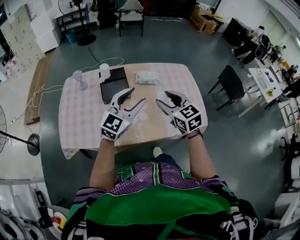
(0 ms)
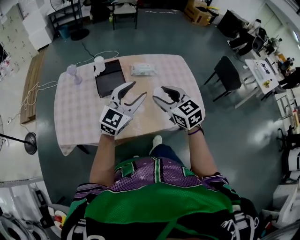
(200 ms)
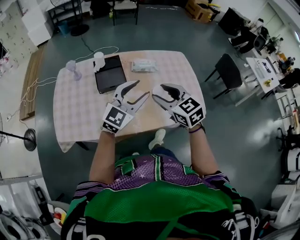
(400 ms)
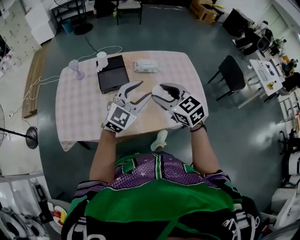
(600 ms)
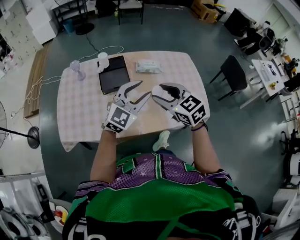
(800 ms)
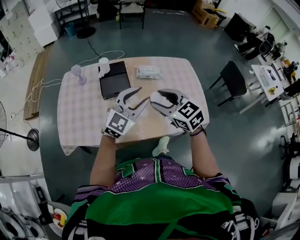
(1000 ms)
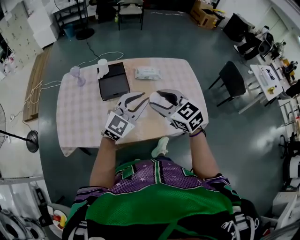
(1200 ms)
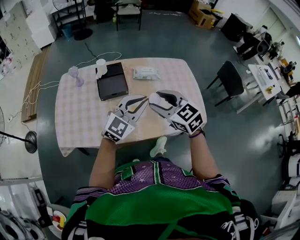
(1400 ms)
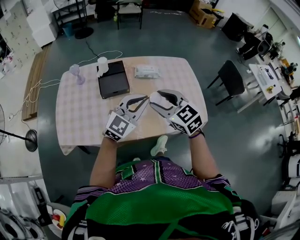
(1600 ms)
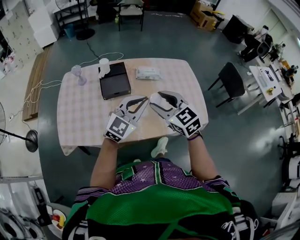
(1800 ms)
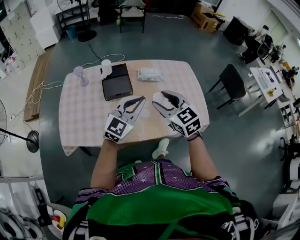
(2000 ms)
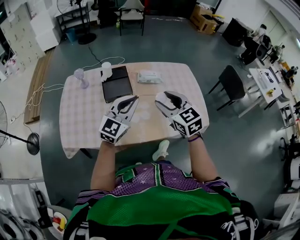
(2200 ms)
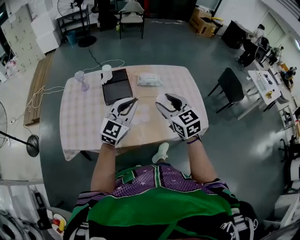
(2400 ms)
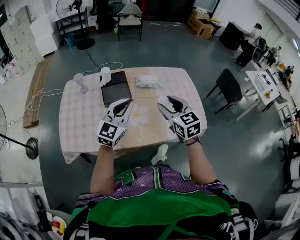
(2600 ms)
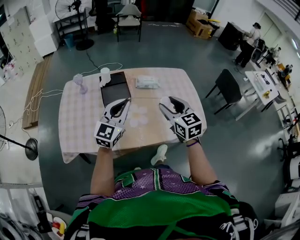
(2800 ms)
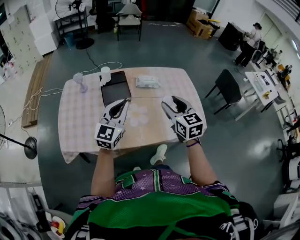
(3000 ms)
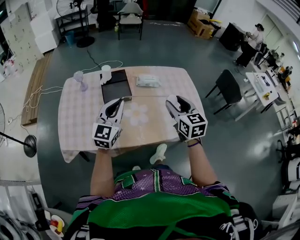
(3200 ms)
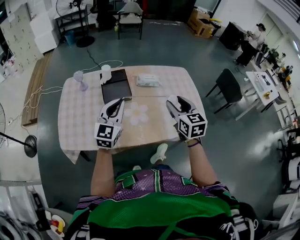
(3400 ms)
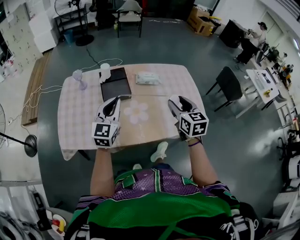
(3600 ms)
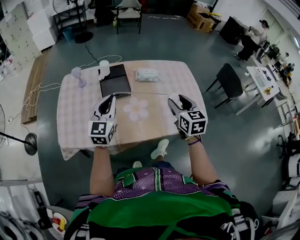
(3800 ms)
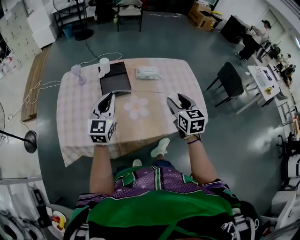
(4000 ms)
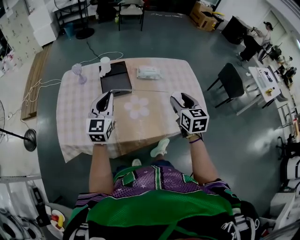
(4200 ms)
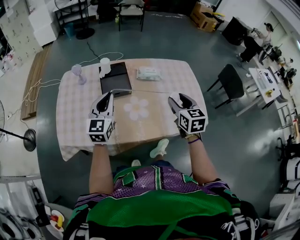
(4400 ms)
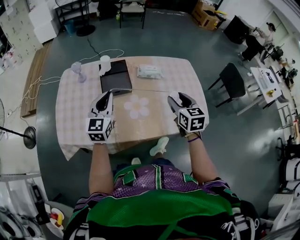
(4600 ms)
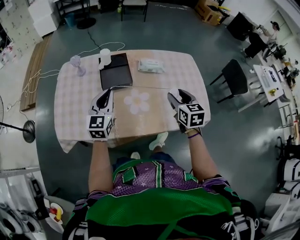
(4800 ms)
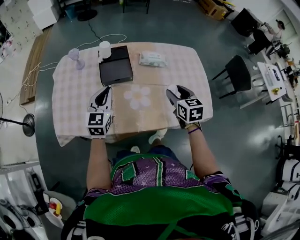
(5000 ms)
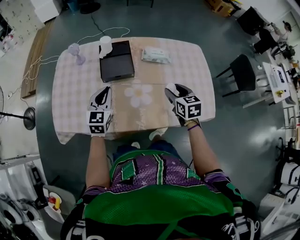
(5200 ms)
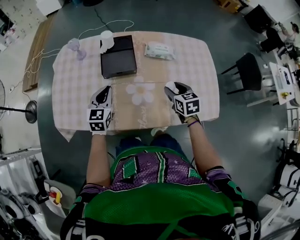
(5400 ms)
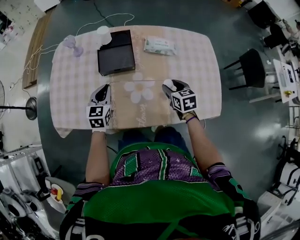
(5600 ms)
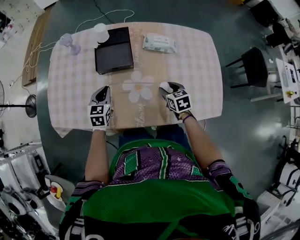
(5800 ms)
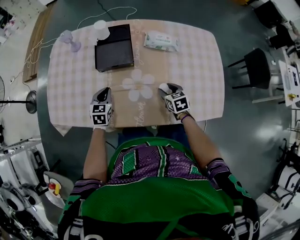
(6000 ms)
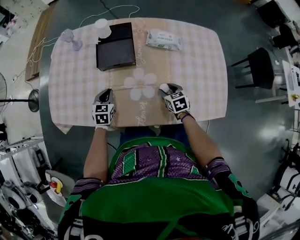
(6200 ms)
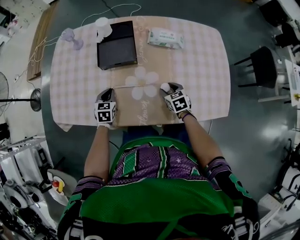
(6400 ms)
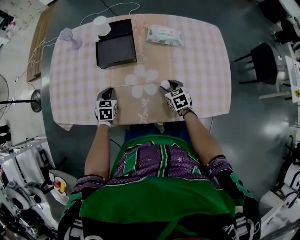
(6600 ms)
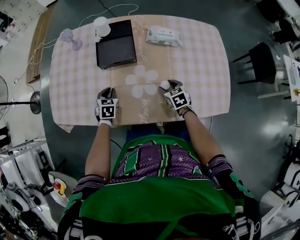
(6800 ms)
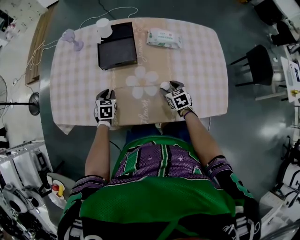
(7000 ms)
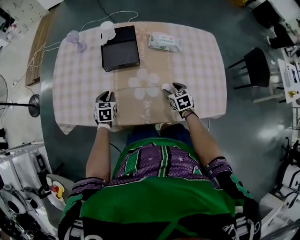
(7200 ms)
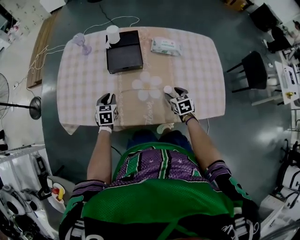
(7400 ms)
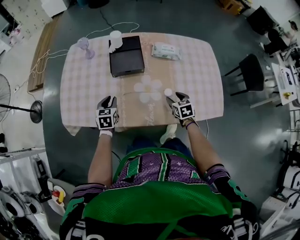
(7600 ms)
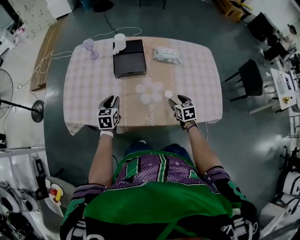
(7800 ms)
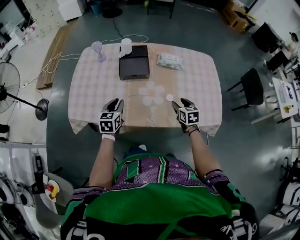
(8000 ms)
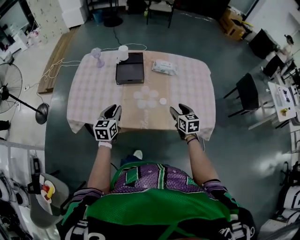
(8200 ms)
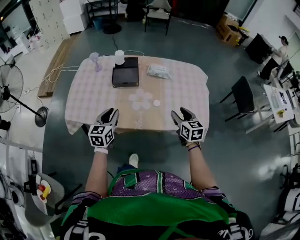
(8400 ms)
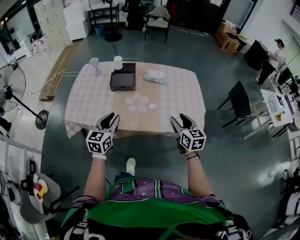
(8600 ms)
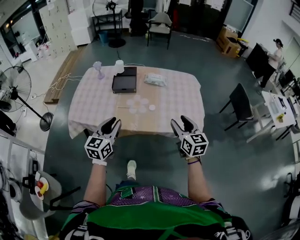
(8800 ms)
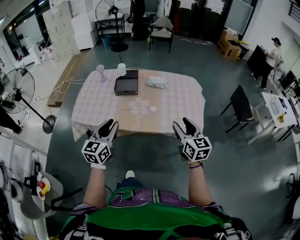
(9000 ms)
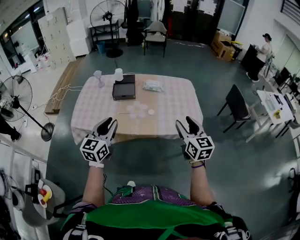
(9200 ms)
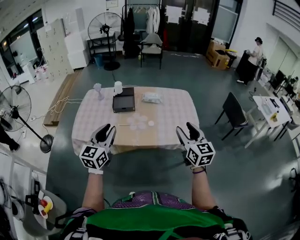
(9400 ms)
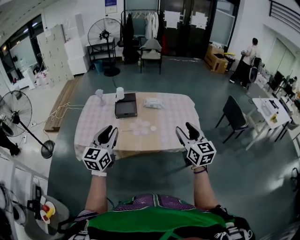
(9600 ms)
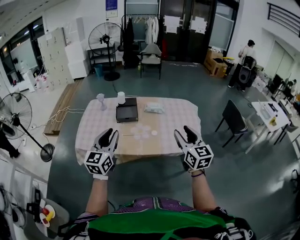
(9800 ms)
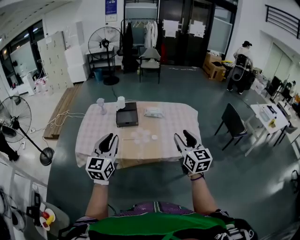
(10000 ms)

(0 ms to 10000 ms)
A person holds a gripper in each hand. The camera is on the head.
0 ms - 1400 ms: The left gripper closes up.
1400 ms - 2800 ms: The right gripper turns by about 20 degrees; the left gripper shifts approximately 10 cm to the left.
2800 ms - 4200 ms: The right gripper shifts approximately 5 cm to the right. Meanwhile the left gripper heads to the left, covering some 10 cm.
4200 ms - 5800 ms: The two grippers go about 25 cm downward. The right gripper turns by about 30 degrees, while the left gripper turns by about 30 degrees.
5800 ms - 7200 ms: The left gripper shifts approximately 5 cm downward.
7200 ms - 8600 ms: Both grippers move upward and backward, approximately 35 cm. The right gripper tips its fingers upward by roughly 30 degrees. The left gripper points its fingers about 30 degrees further upward.
8600 ms - 10000 ms: Both grippers move upward and backward, about 20 cm.

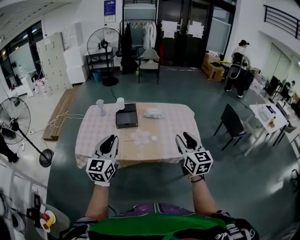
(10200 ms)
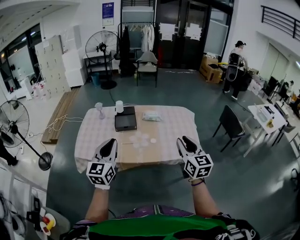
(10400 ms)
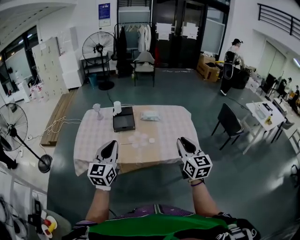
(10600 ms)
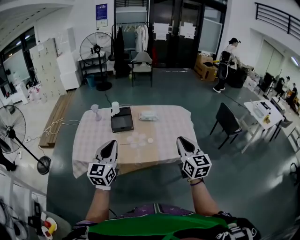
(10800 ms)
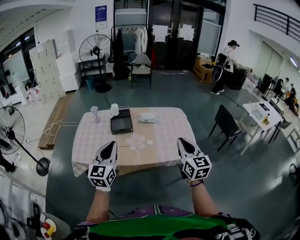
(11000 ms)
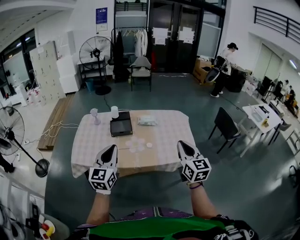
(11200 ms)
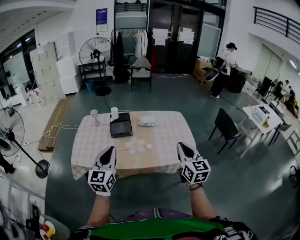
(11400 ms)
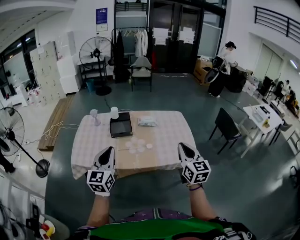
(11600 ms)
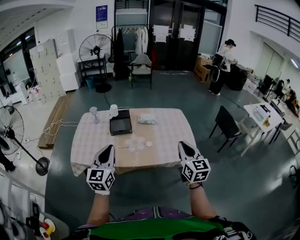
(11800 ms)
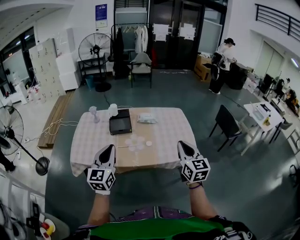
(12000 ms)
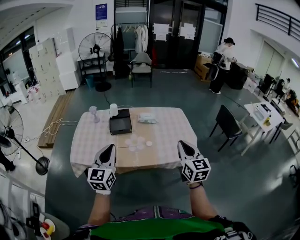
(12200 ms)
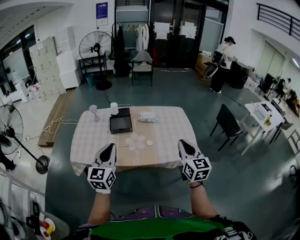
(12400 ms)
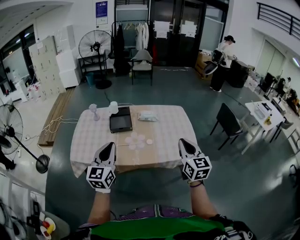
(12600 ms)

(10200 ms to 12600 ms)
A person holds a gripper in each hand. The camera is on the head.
10200 ms - 11400 ms: The right gripper closes its fingers.
11400 ms - 12600 ms: The grippers move only a little.

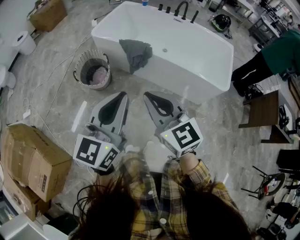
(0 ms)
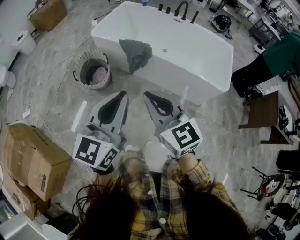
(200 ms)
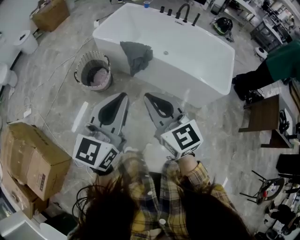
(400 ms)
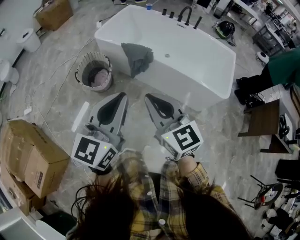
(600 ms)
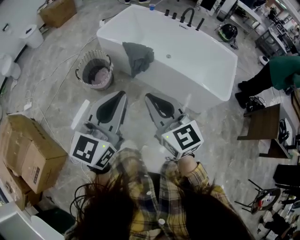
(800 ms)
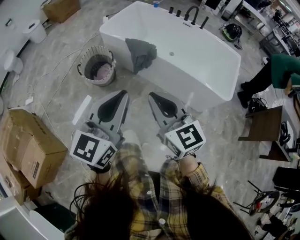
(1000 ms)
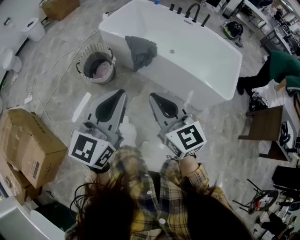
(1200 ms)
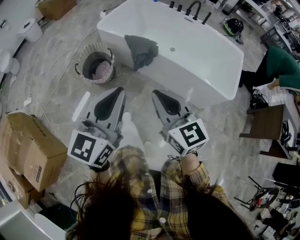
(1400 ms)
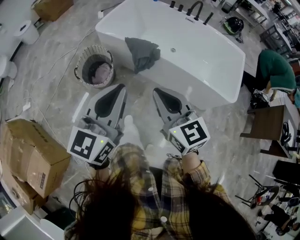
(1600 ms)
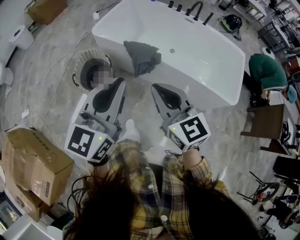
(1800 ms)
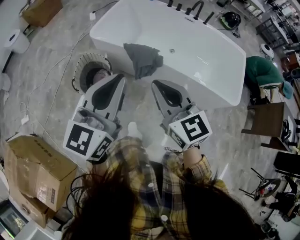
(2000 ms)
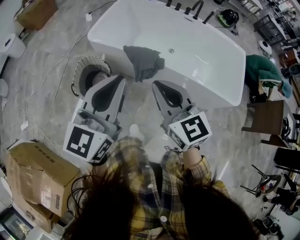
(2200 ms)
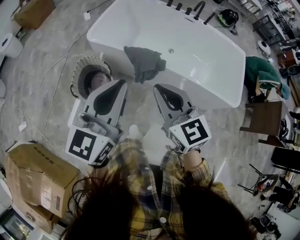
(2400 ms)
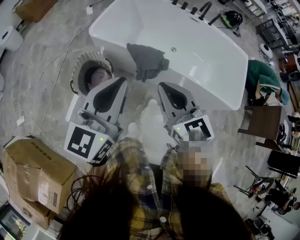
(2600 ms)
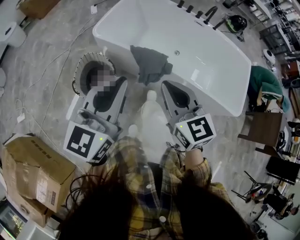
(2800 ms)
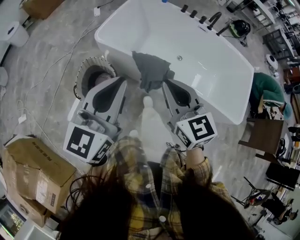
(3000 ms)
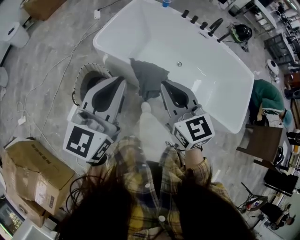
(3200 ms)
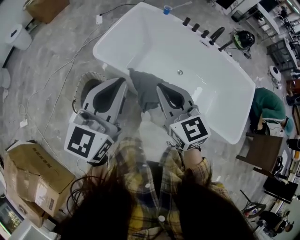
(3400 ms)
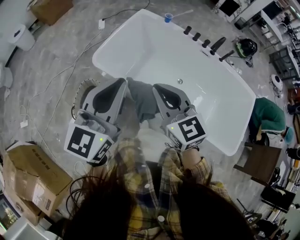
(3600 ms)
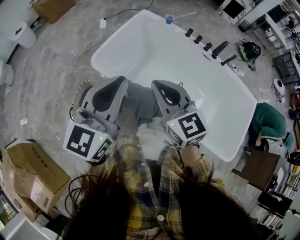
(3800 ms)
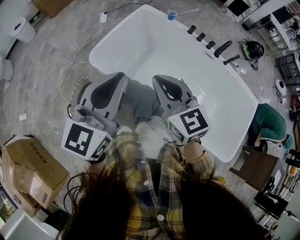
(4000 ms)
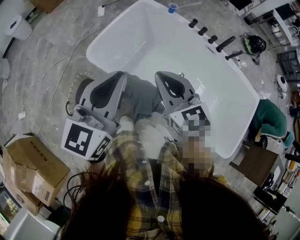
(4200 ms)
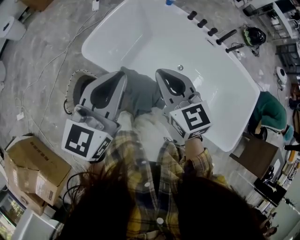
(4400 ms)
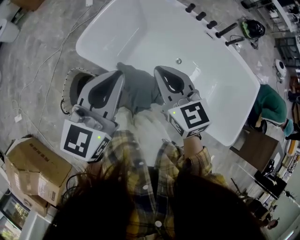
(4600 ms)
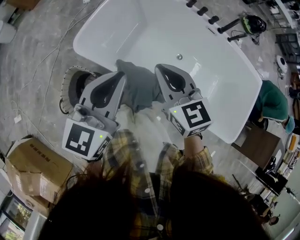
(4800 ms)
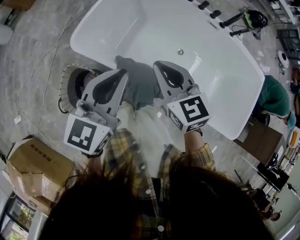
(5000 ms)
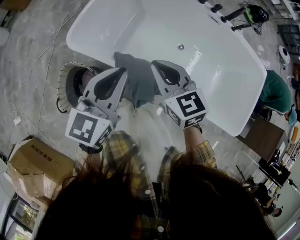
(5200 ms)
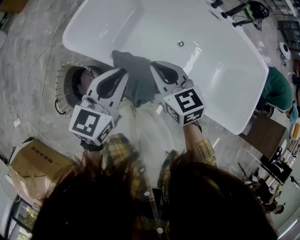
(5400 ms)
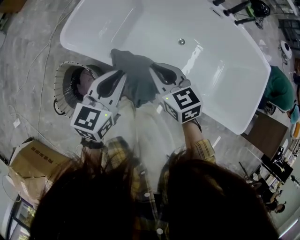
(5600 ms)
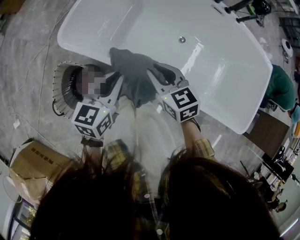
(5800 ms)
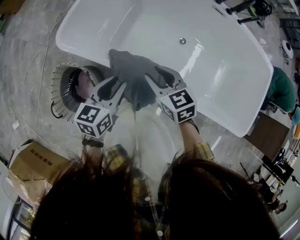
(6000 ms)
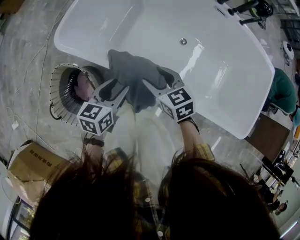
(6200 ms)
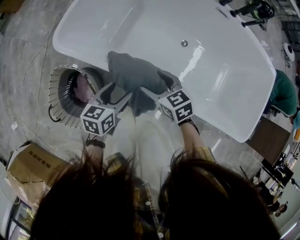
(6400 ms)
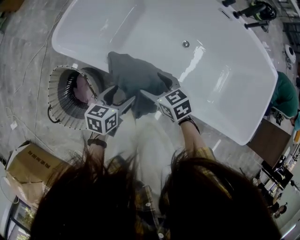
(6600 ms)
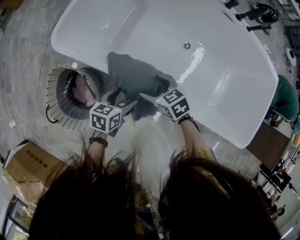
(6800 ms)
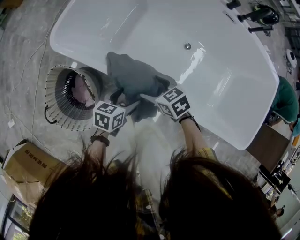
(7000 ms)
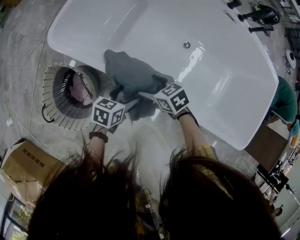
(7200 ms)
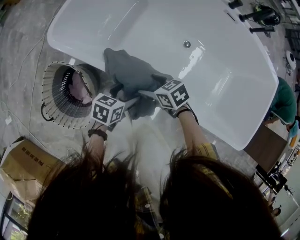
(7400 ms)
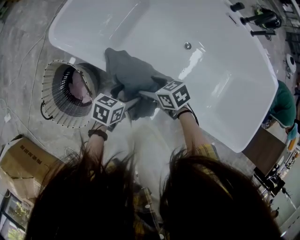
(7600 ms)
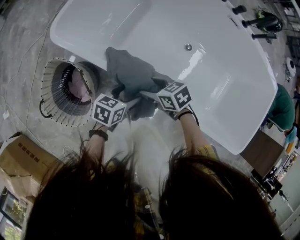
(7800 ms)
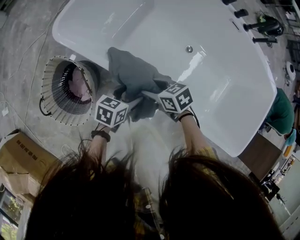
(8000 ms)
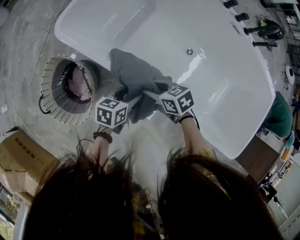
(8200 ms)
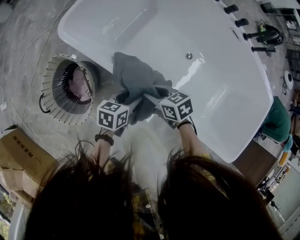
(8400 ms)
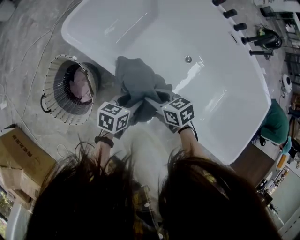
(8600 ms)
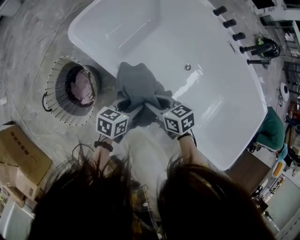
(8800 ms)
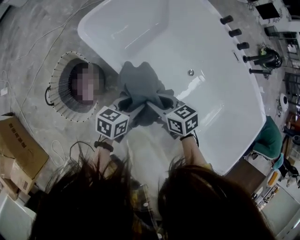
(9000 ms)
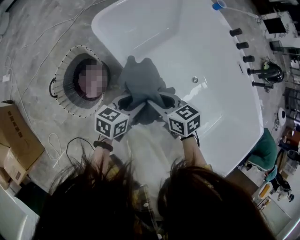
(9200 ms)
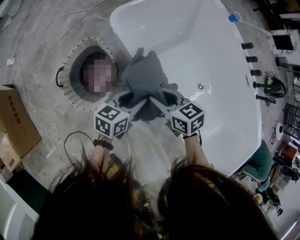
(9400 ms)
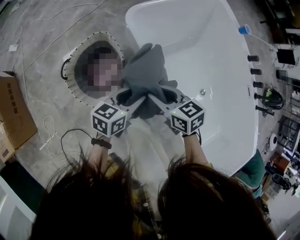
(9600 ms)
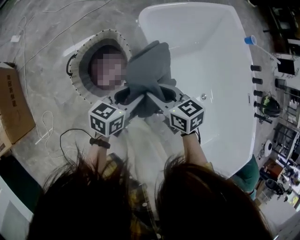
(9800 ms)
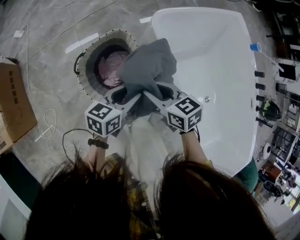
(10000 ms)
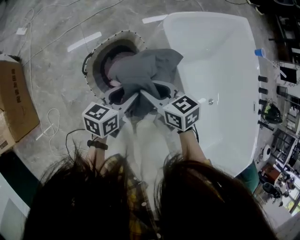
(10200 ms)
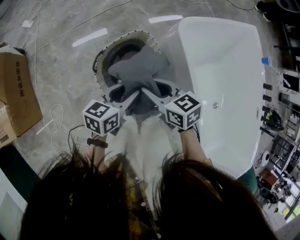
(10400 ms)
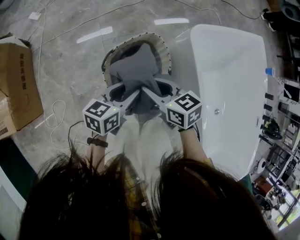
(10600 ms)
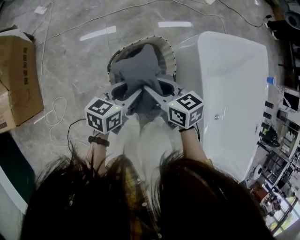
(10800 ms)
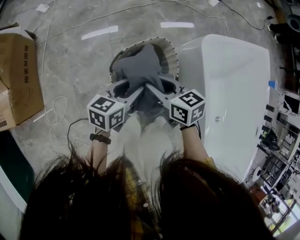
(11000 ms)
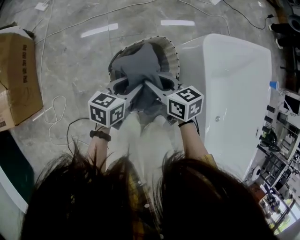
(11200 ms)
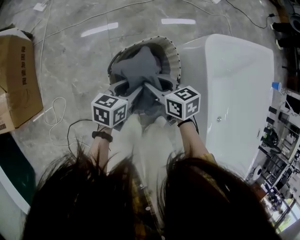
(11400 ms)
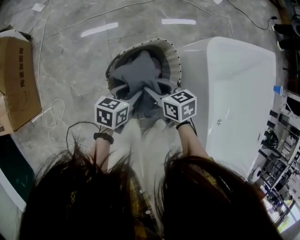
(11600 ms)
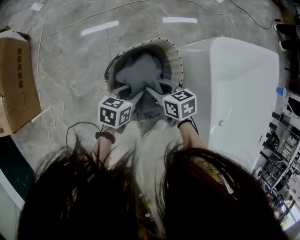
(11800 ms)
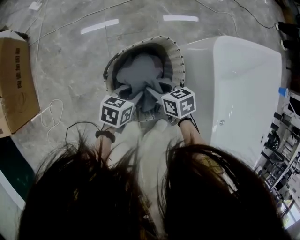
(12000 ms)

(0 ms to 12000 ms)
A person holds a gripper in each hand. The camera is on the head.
0 ms - 1600 ms: Both grippers travel together forward, about 10 cm.
1600 ms - 3000 ms: The right gripper shifts approximately 25 cm forward, while the left gripper heads forward and to the left, covering some 30 cm.
3000 ms - 4400 ms: The two grippers go approximately 25 cm forward.
4400 ms - 6000 ms: The two grippers go approximately 30 cm downward. The left gripper changes its angle by some 30 degrees. The right gripper turns by about 20 degrees.
6000 ms - 7600 ms: The grippers both shift downward by roughly 15 cm. The left gripper swivels roughly 20 degrees, and opens up, while the right gripper swivels approximately 30 degrees, and opens.
7600 ms - 9000 ms: The two grippers go approximately 10 cm upward. The right gripper closes its fingers. Meanwhile the left gripper swivels some 20 degrees, and closes.
9000 ms - 10400 ms: The right gripper ends up approximately 35 cm from where it was, and rotates approximately 30 degrees; the left gripper ends up some 35 cm from where it was, and swivels about 30 degrees.
10400 ms - 12000 ms: Both grippers travel together downward, some 20 cm.
